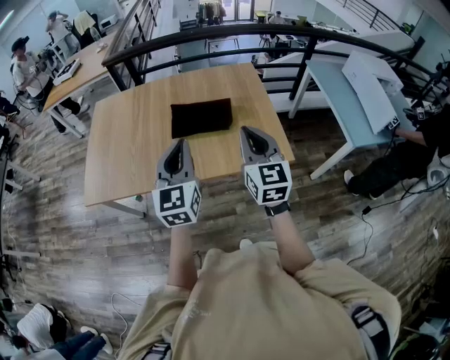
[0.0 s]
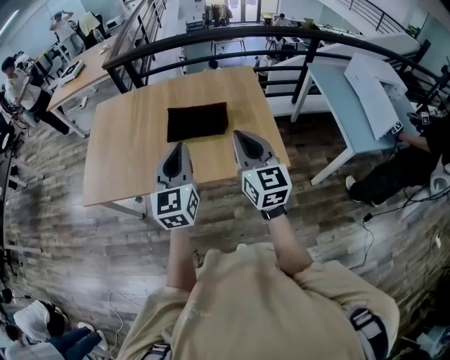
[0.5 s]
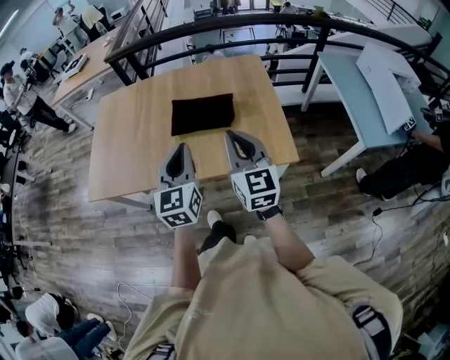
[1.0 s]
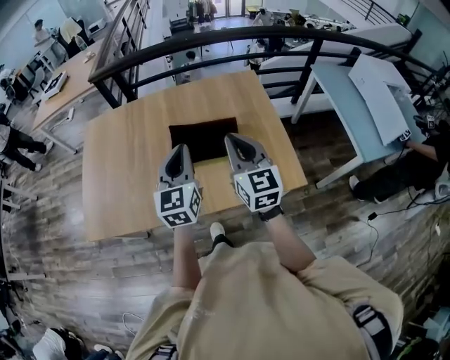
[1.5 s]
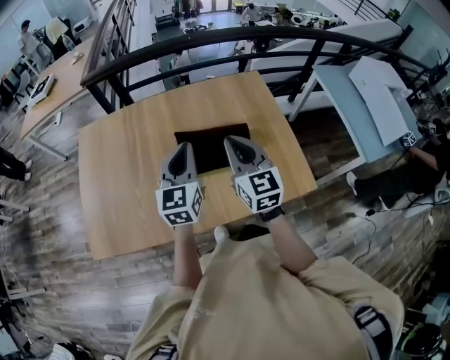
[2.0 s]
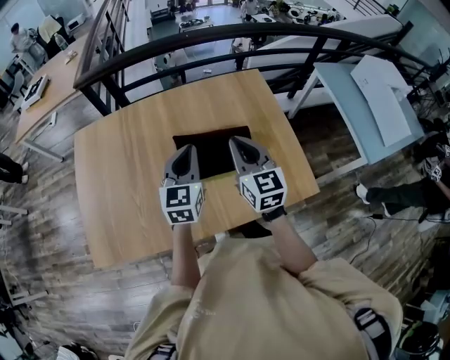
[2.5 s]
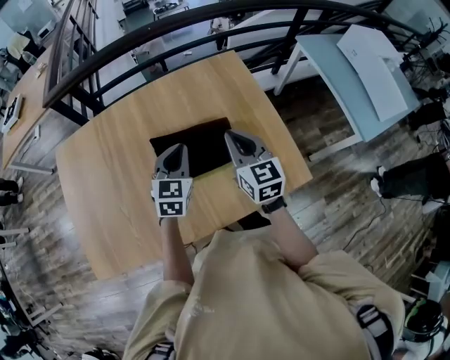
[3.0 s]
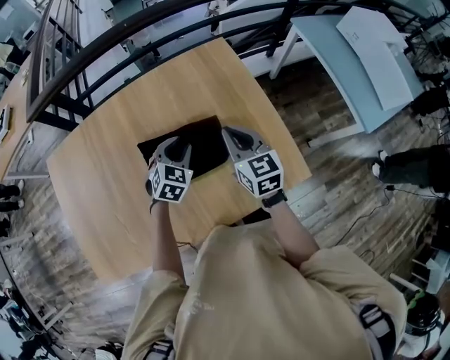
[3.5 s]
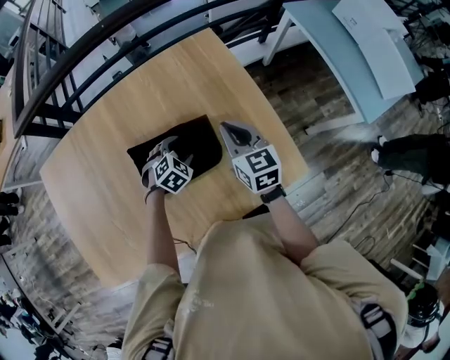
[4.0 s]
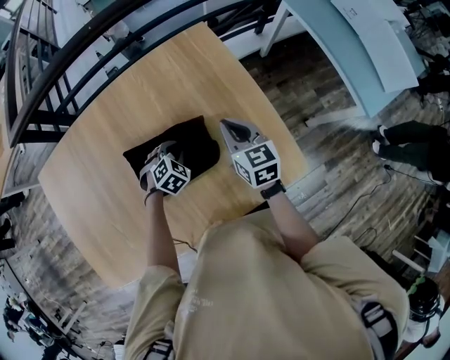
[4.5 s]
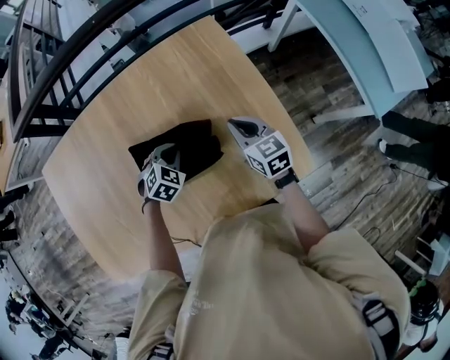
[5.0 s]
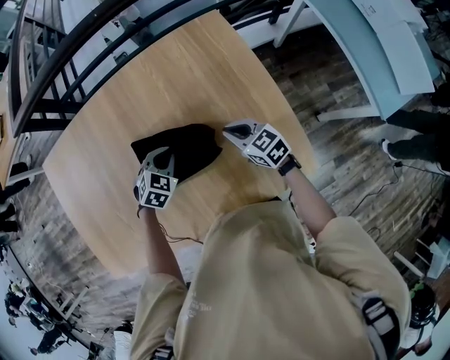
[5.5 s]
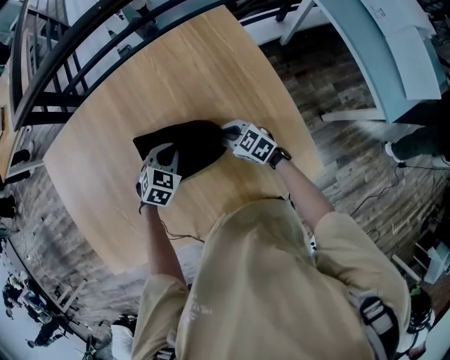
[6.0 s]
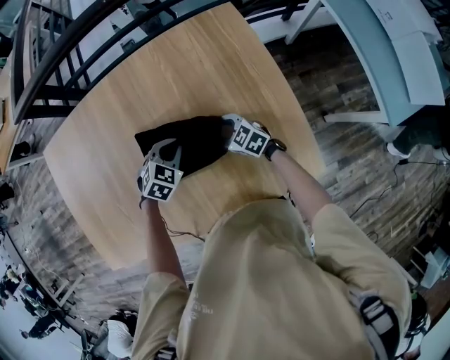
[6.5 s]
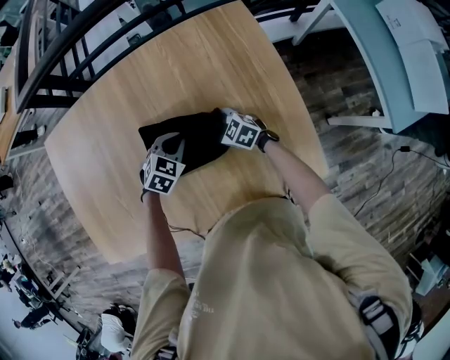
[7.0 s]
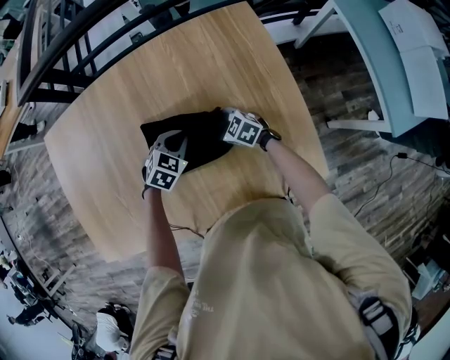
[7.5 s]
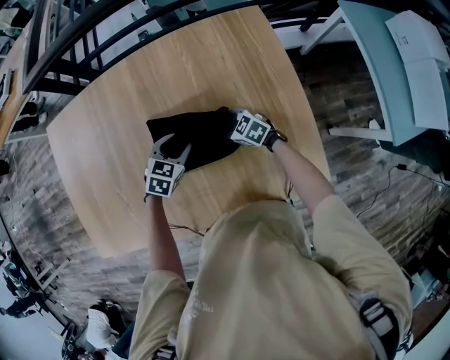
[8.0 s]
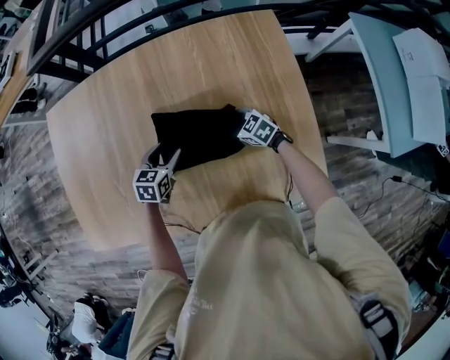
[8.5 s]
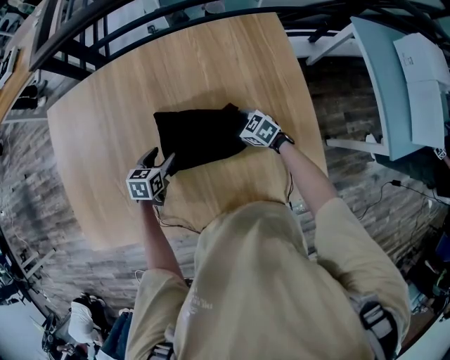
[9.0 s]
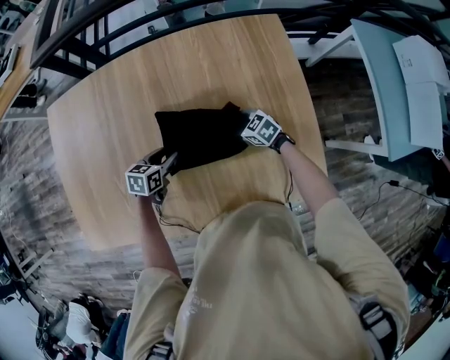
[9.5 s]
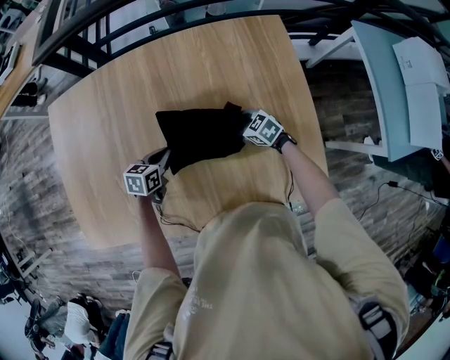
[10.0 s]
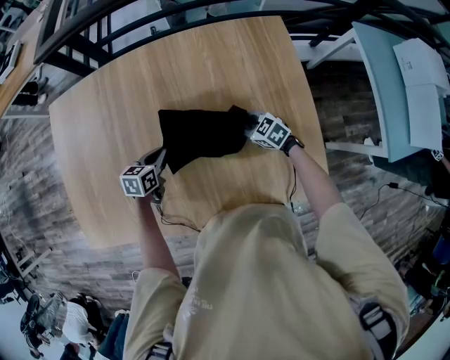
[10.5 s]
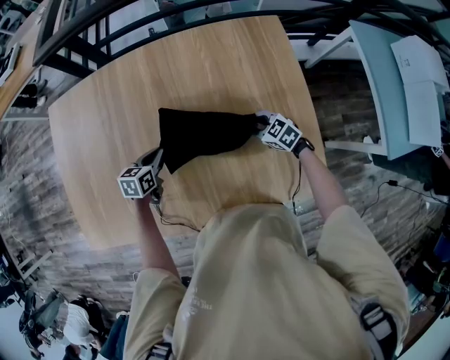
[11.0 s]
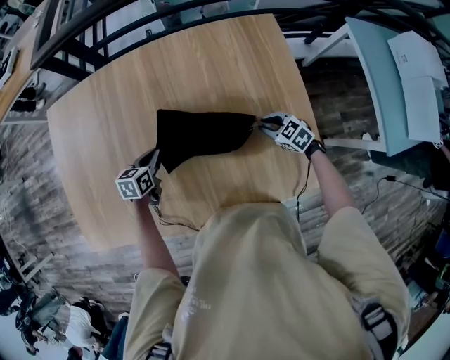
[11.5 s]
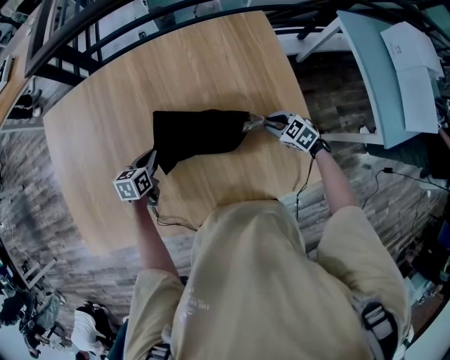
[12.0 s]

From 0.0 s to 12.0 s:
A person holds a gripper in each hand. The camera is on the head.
From 0.0 s to 2.0 s: The right gripper goes some 30 cm forward and to the left, while the left gripper heads forward, covering roughly 30 cm.
From 2.0 s to 4.0 s: The right gripper moves forward, to the right and downward, roughly 30 cm, and changes its angle by about 20 degrees. Meanwhile the left gripper is displaced downward, forward and to the right by about 40 cm, points its fingers about 60 degrees further downward, and opens.
From 4.0 s to 6.0 s: The right gripper shifts roughly 20 cm downward, and changes its angle by roughly 40 degrees, while the left gripper moves to the left, roughly 5 cm, and closes.
From 6.0 s to 8.0 s: The right gripper shifts by approximately 5 cm, and opens, while the left gripper opens.
From 8.0 s to 10.0 s: The left gripper heads to the left, covering approximately 10 cm, changes its angle by roughly 30 degrees, and closes up.
From 10.0 s to 12.0 s: The right gripper heads to the right and backward, covering some 15 cm.

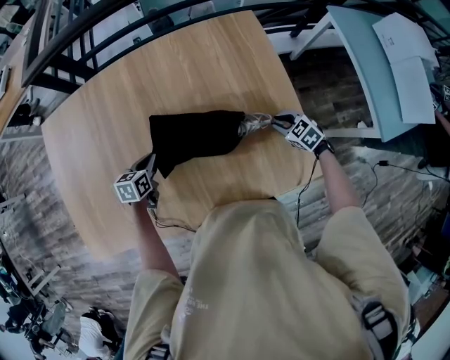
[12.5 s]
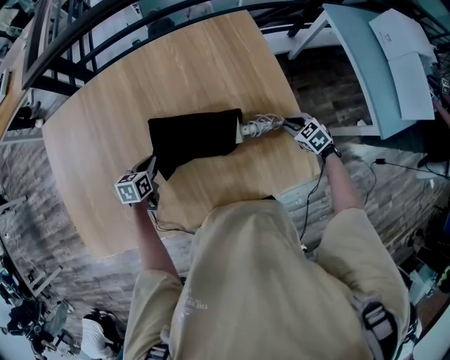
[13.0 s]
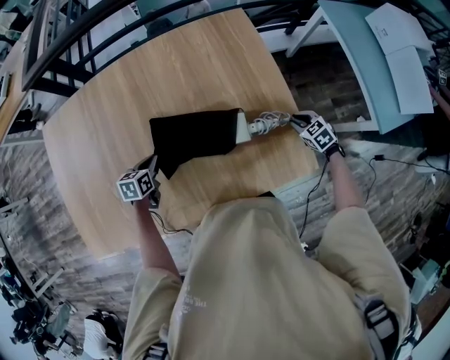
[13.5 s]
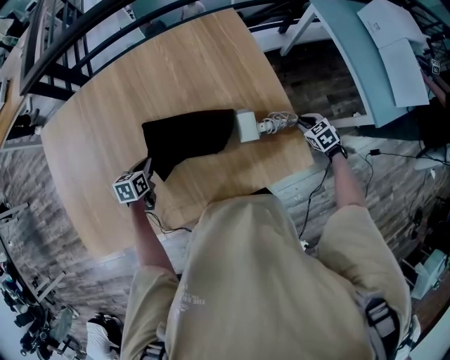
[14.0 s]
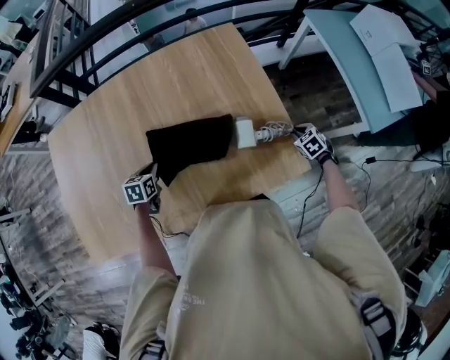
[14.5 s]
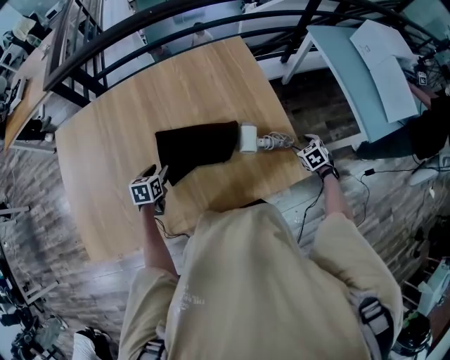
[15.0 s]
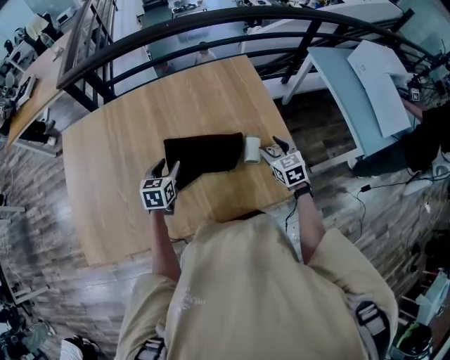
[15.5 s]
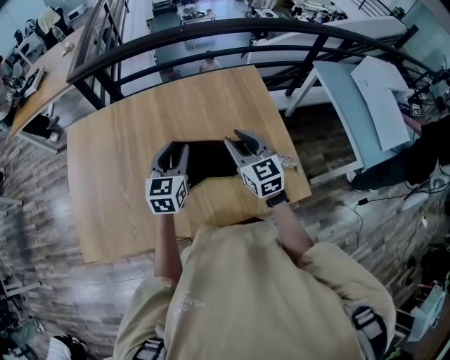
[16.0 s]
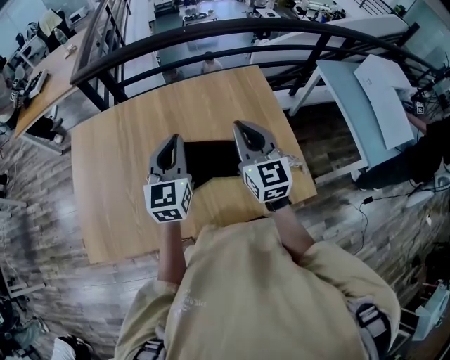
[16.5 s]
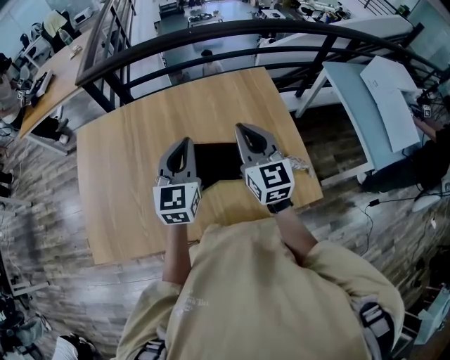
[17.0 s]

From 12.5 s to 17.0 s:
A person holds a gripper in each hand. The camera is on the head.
From 12.5 s to 14.5 s: The right gripper heads to the right and backward, covering some 15 cm, and rotates about 20 degrees; the left gripper ends up roughly 5 cm from where it was.
From 14.5 s to 17.0 s: The right gripper goes approximately 50 cm upward and to the left, points its fingers about 60 degrees further upward, and opens, then closes again. The left gripper shifts some 30 cm upward, tilts its fingers some 50 degrees upward, and opens and closes again.

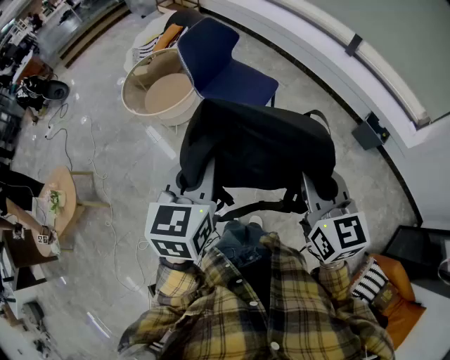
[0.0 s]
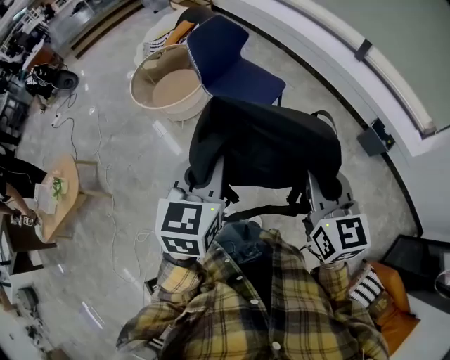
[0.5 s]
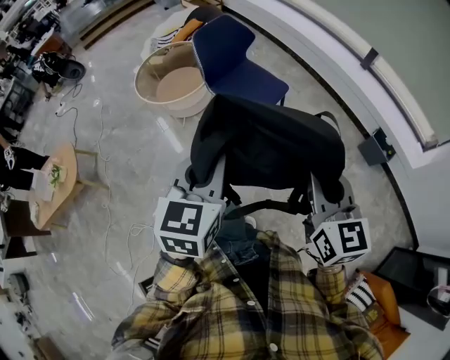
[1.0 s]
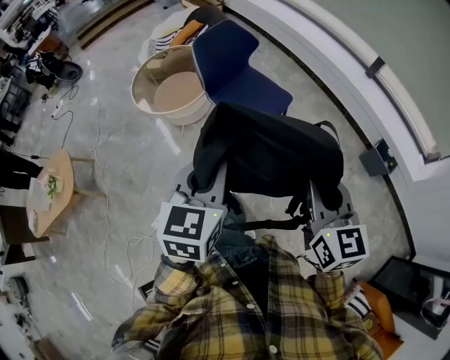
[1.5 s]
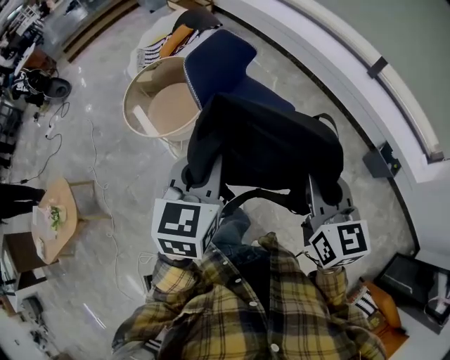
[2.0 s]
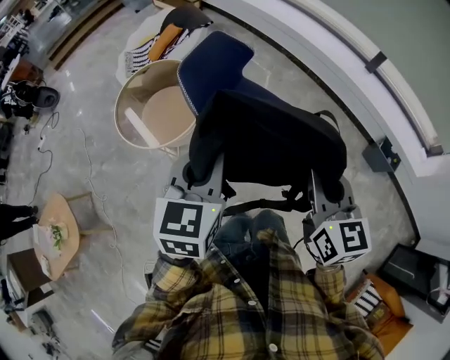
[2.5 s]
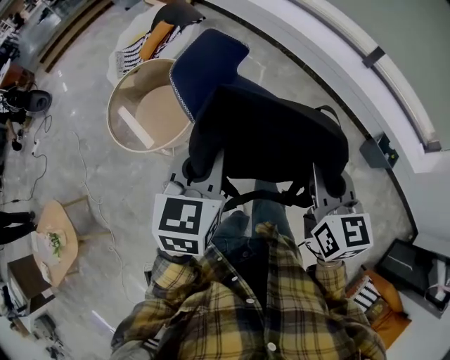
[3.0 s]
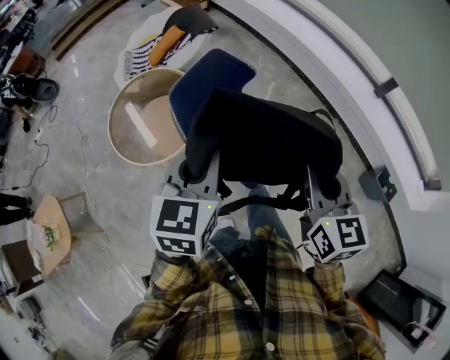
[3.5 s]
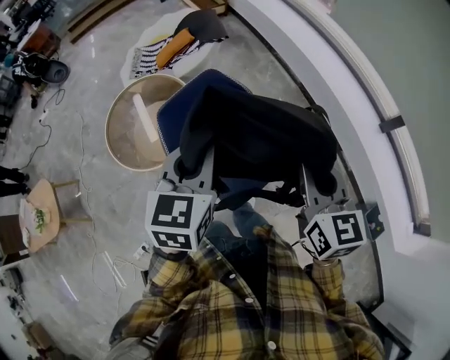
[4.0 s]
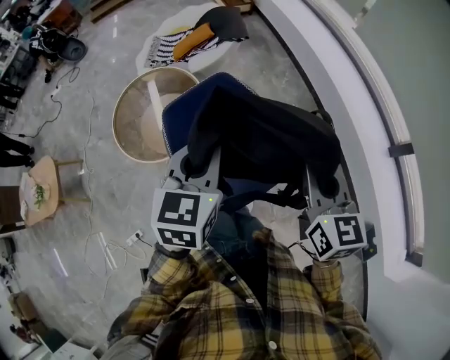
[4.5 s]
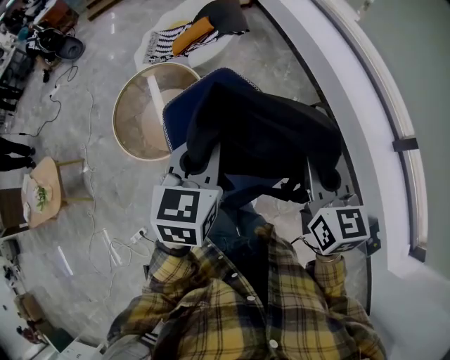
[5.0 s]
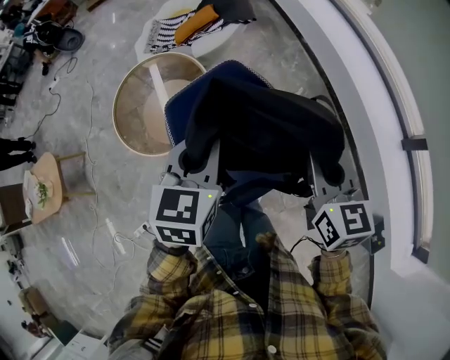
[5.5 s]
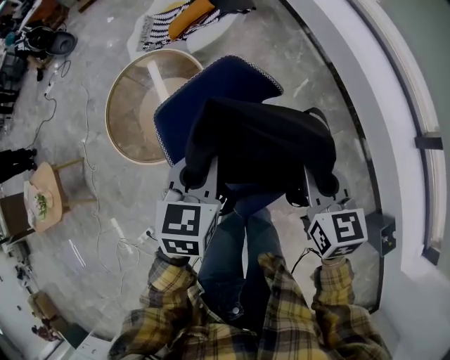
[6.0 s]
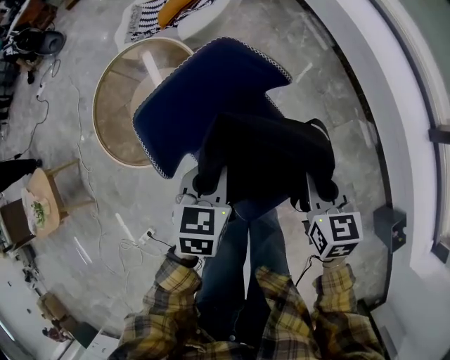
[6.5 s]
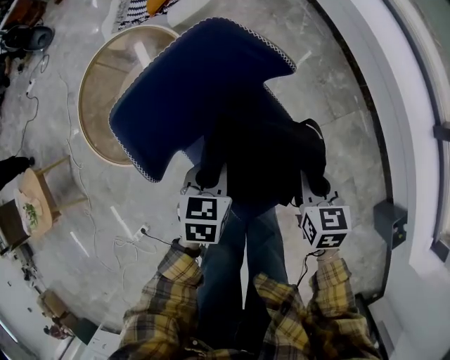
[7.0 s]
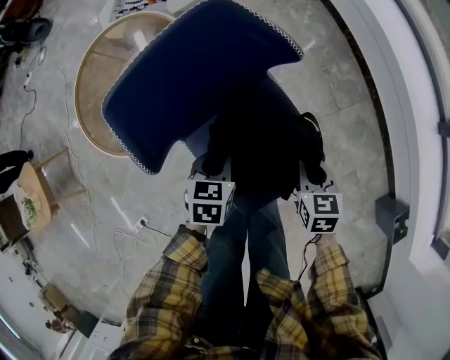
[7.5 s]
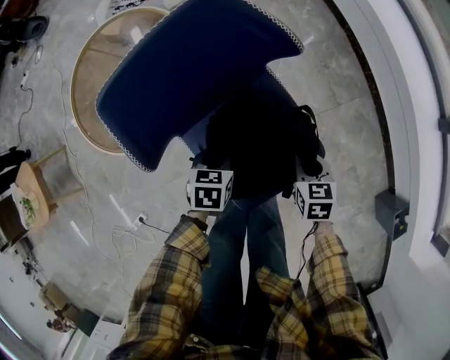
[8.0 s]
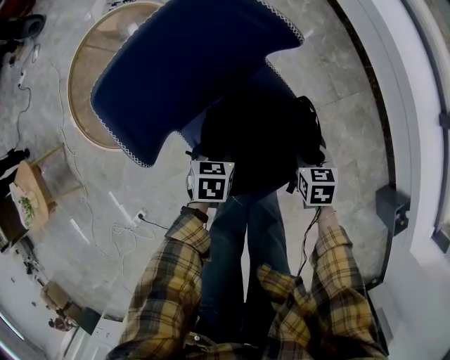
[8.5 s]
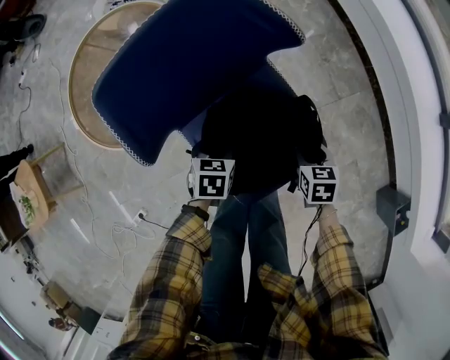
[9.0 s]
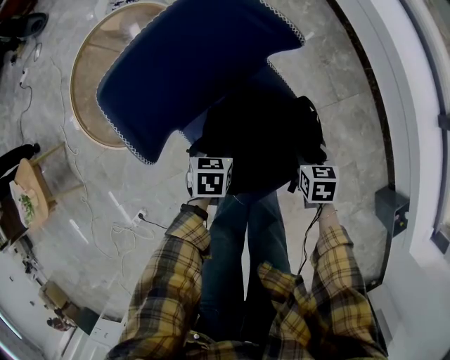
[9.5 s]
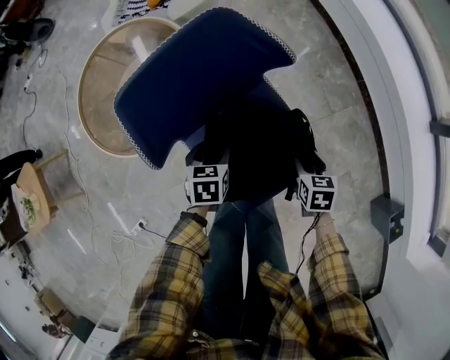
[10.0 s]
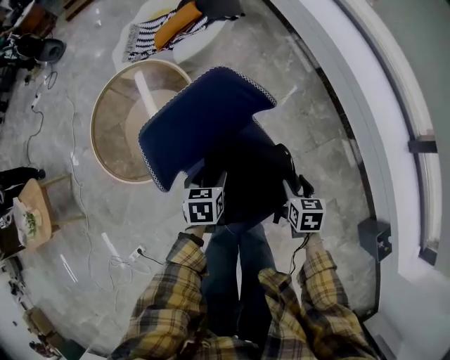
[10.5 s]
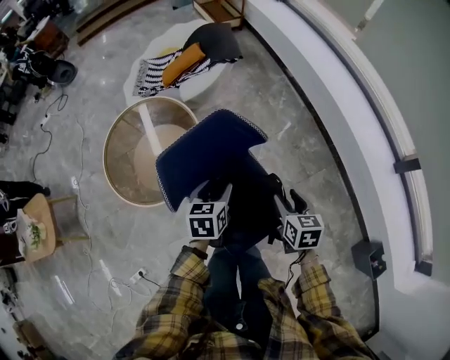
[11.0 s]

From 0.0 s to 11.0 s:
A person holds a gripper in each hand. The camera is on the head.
From 0.0 s to 2.0 s: Both grippers move forward, some 20 cm.
From 2.0 s to 3.5 s: The grippers both shift forward by about 25 cm.
From 3.5 s to 5.5 s: The grippers both shift forward by roughly 20 cm.
From 5.5 s to 7.5 s: The grippers both shift downward by some 40 cm. The right gripper changes its angle by some 30 degrees; the left gripper changes its angle by roughly 30 degrees.
From 7.5 s to 9.0 s: Both grippers move downward, about 10 cm. The right gripper opens; the left gripper opens up.
From 9.0 s to 11.0 s: The grippers both shift upward by about 25 cm. The left gripper turns by approximately 20 degrees.
